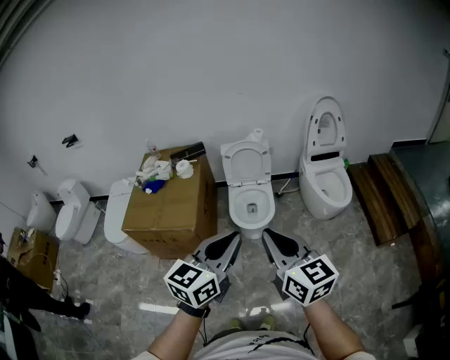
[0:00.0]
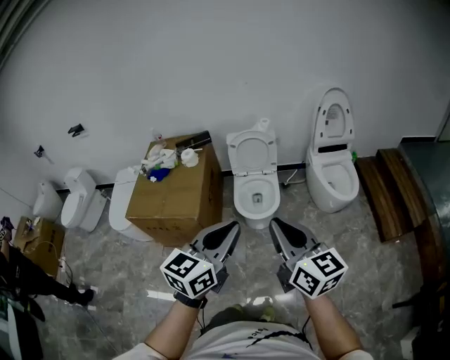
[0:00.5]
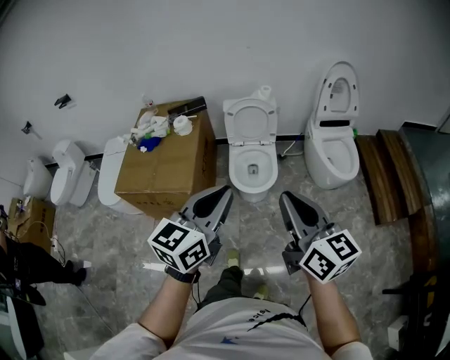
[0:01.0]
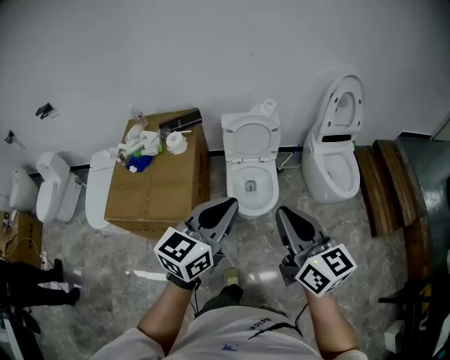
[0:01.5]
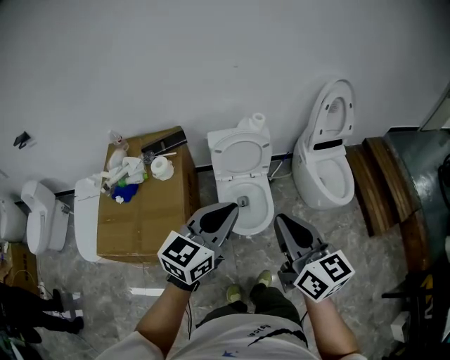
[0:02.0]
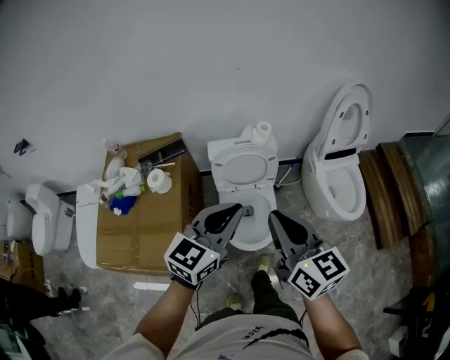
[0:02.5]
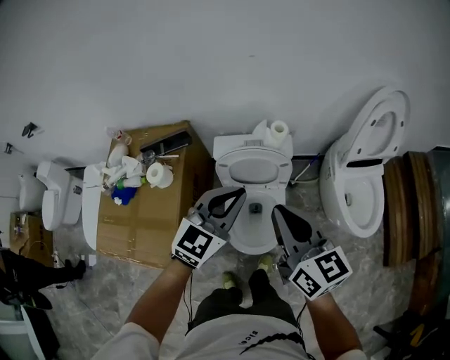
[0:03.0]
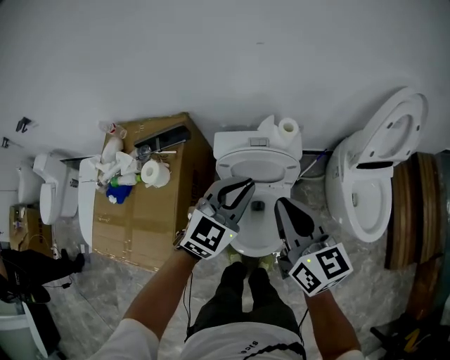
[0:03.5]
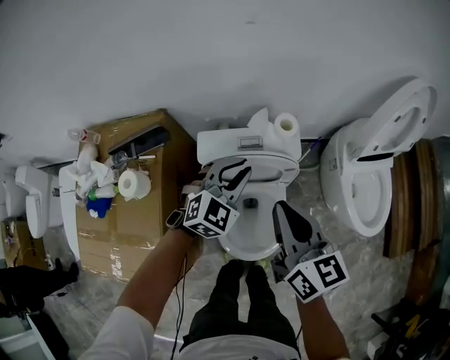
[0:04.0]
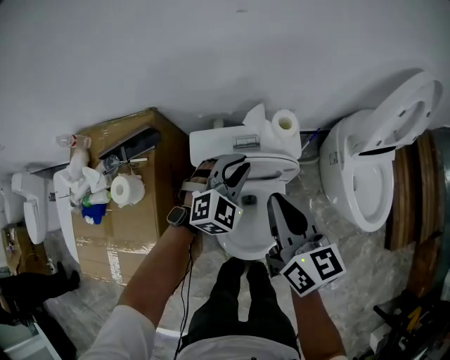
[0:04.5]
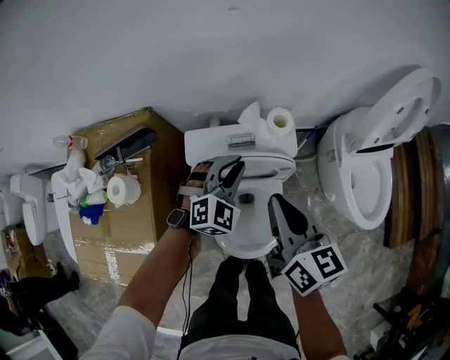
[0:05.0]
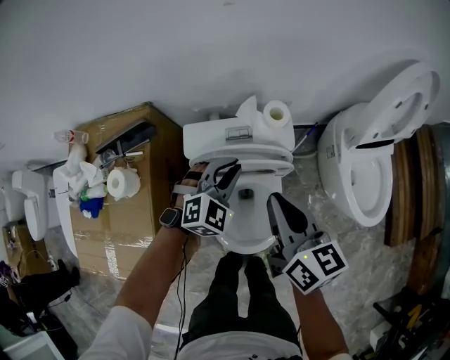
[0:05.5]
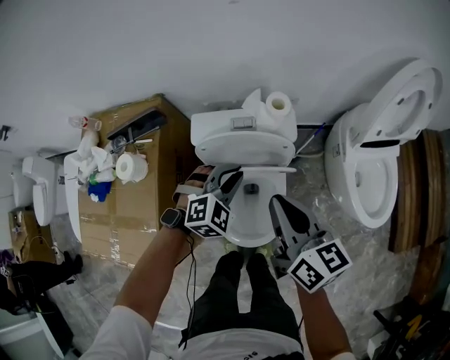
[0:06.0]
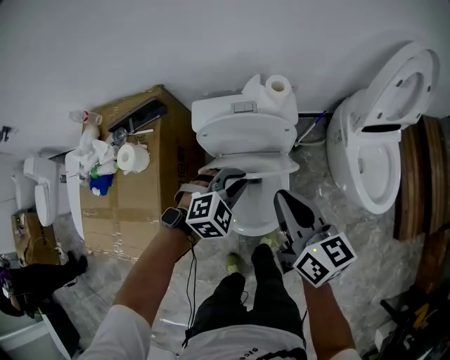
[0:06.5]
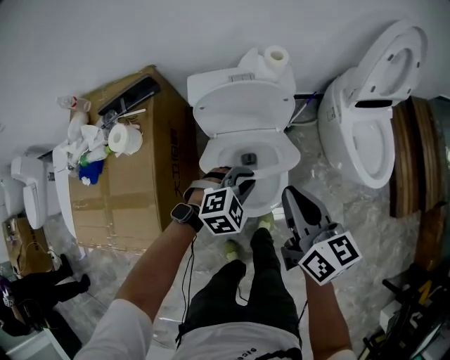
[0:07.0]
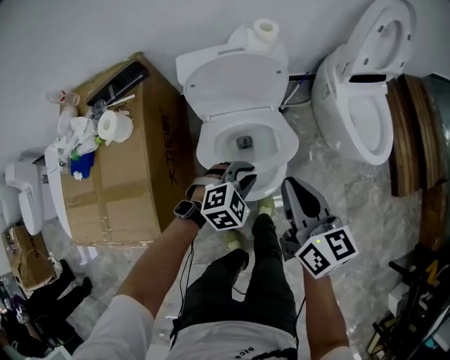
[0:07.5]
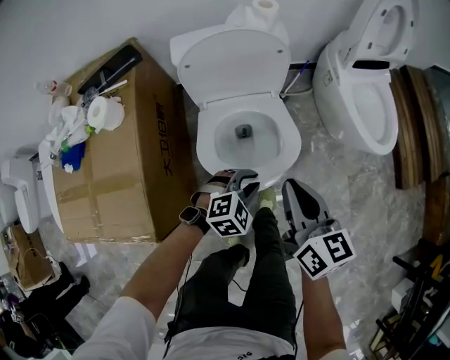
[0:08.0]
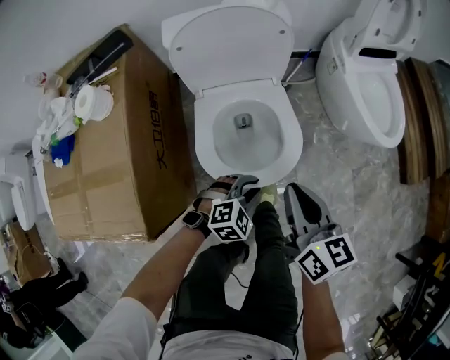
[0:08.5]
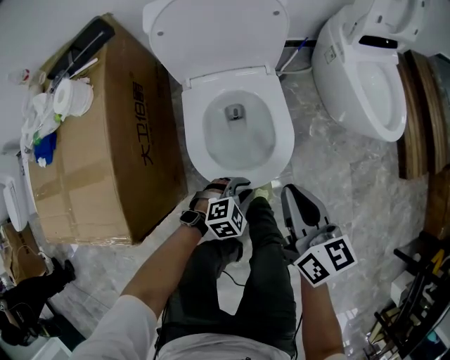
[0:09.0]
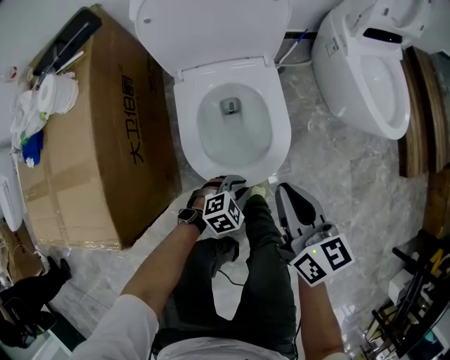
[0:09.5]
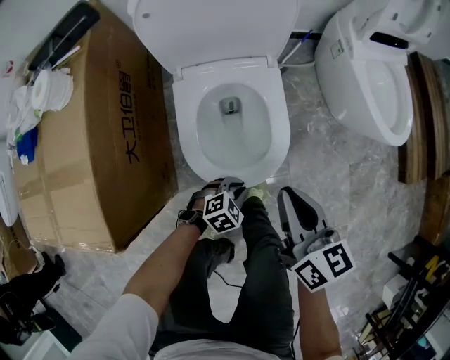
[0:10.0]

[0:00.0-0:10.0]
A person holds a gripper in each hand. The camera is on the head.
0:00.0 to 0:02.0: Both grippers travel together forward, roughly 30 cm.
0:02.0 to 0:04.0: Both grippers are carried forward, approximately 40 cm. The two grippers go roughly 25 cm downward. The left gripper changes its angle by roughly 40 degrees.
0:04.0 to 0:06.0: The left gripper travels downward and backward by about 10 cm; the right gripper ends up approximately 5 cm from where it was.
0:06.0 to 0:08.0: Both grippers move backward and downward, approximately 30 cm. The left gripper changes its angle by about 20 degrees.
0:08.0 to 0:10.0: The left gripper shifts roughly 25 cm downward; the right gripper goes approximately 15 cm downward.

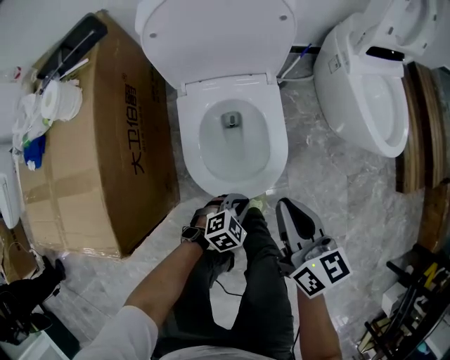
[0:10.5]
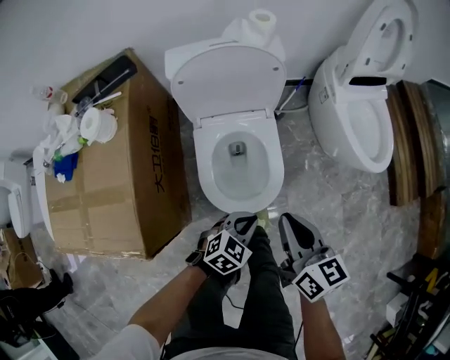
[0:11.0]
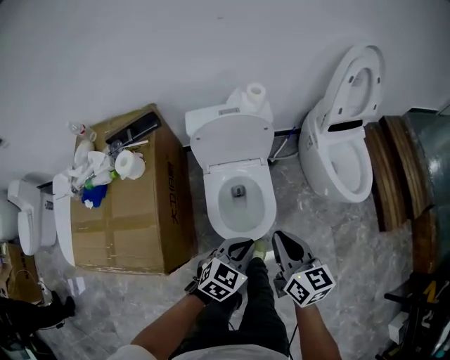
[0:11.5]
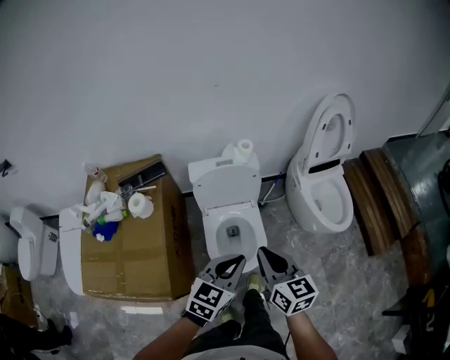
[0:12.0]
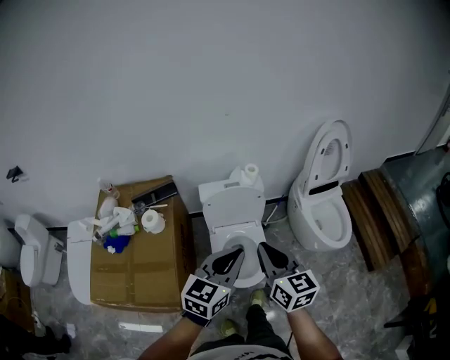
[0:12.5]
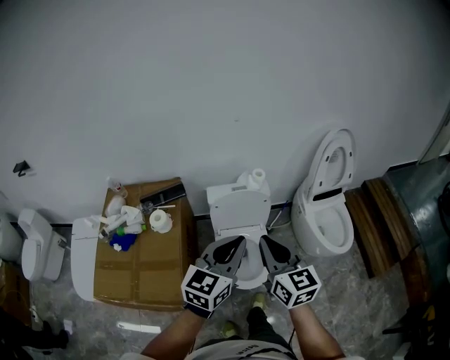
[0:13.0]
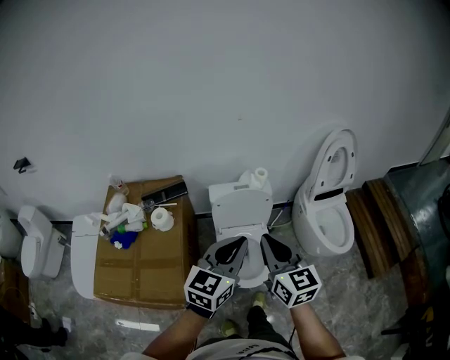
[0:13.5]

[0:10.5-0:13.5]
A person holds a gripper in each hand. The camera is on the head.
0:10.5 to 0:12.0: The left gripper shifts approximately 60 cm upward, and angles its fingers upward, by some 30 degrees; the right gripper moves upward, about 35 cm.
0:12.0 to 0:13.5: The grippers both shift upward and to the left by some 15 cm.

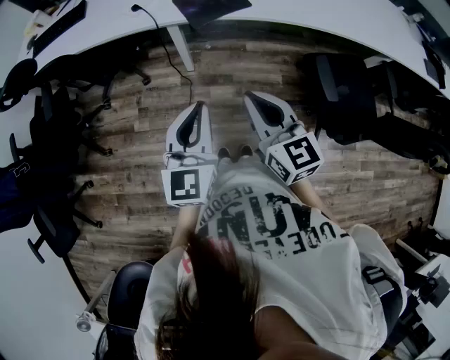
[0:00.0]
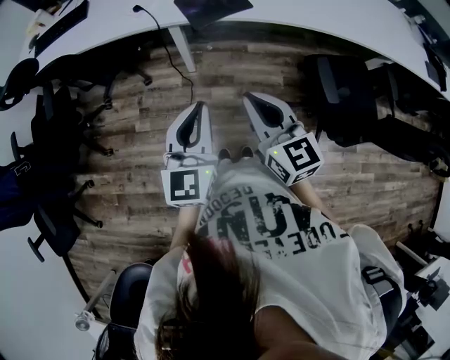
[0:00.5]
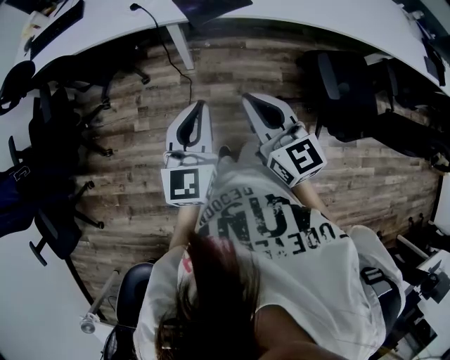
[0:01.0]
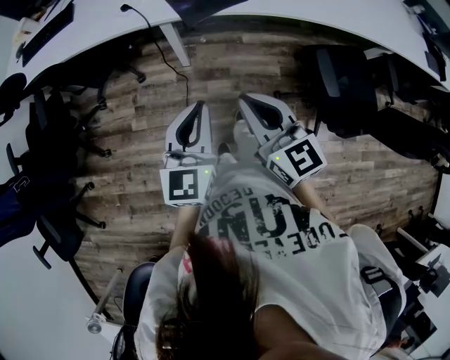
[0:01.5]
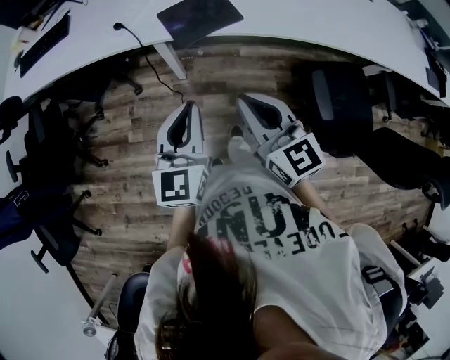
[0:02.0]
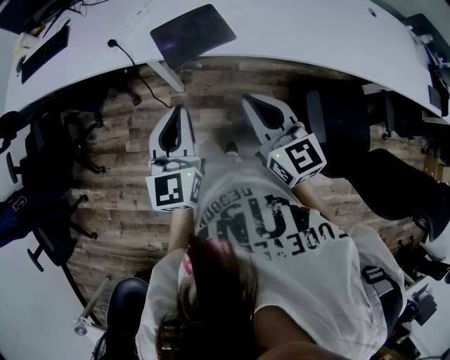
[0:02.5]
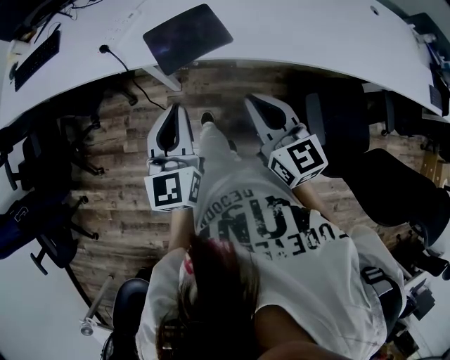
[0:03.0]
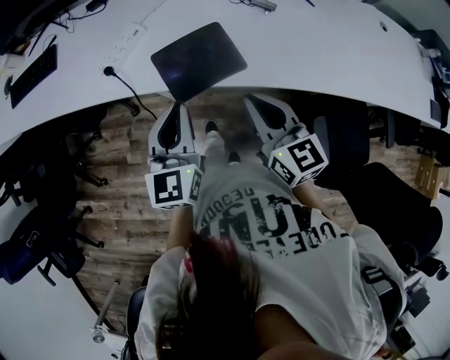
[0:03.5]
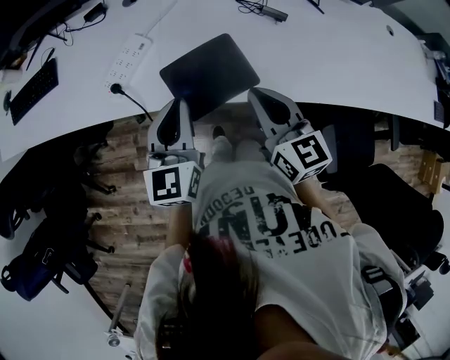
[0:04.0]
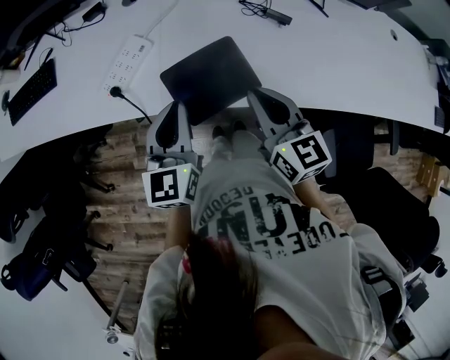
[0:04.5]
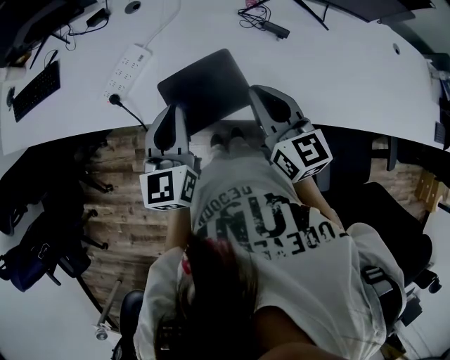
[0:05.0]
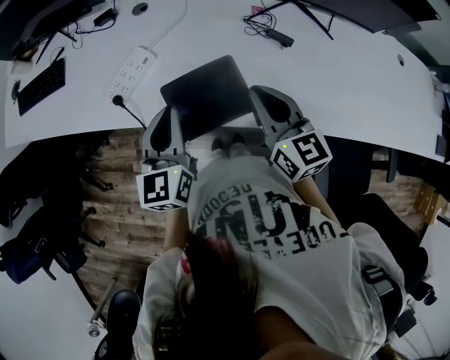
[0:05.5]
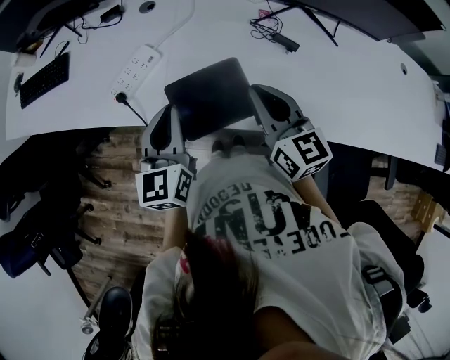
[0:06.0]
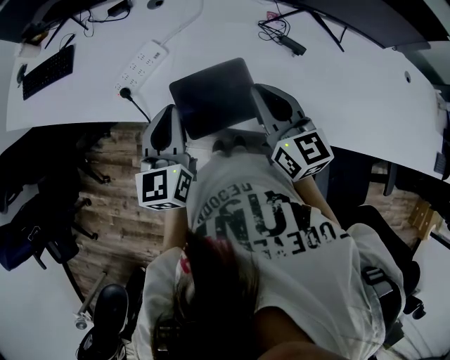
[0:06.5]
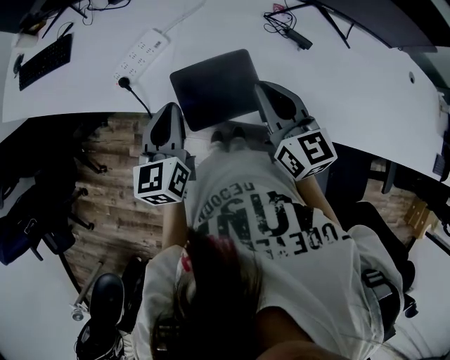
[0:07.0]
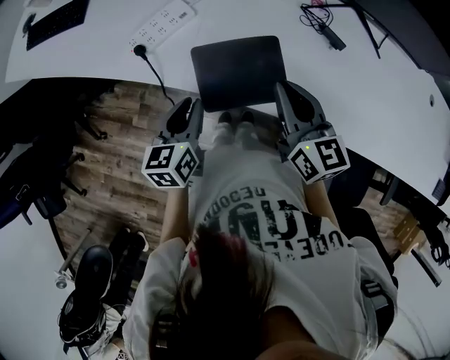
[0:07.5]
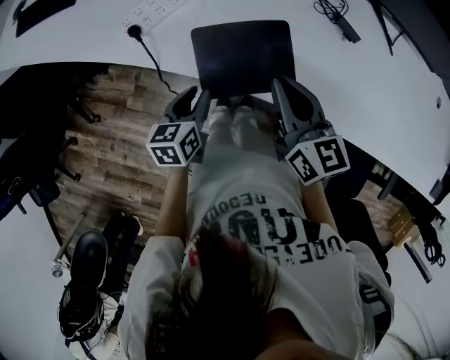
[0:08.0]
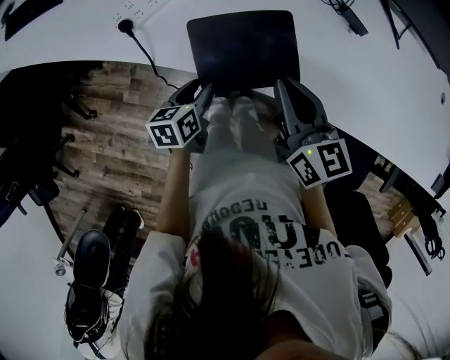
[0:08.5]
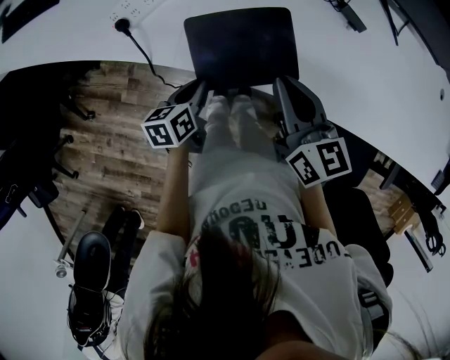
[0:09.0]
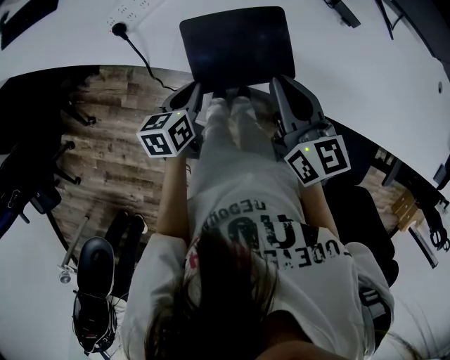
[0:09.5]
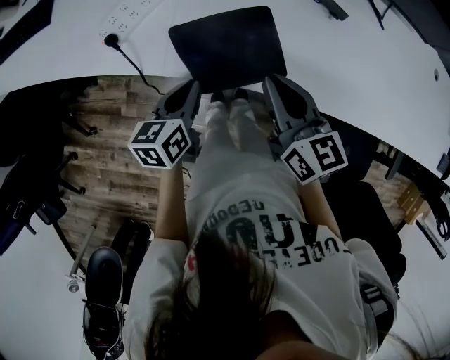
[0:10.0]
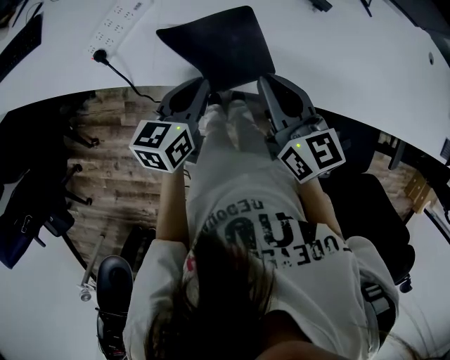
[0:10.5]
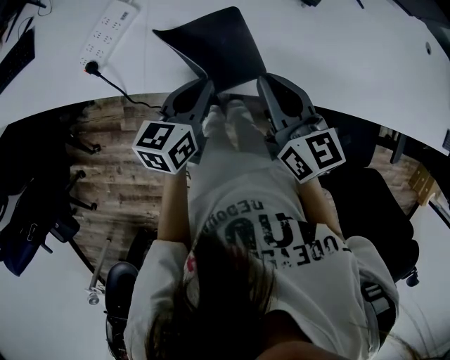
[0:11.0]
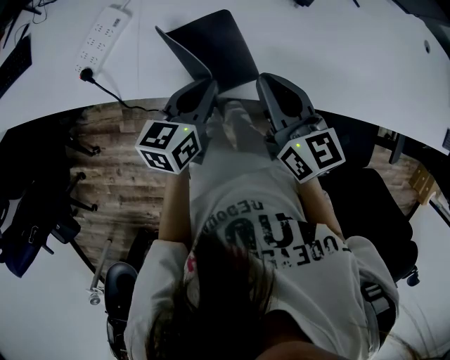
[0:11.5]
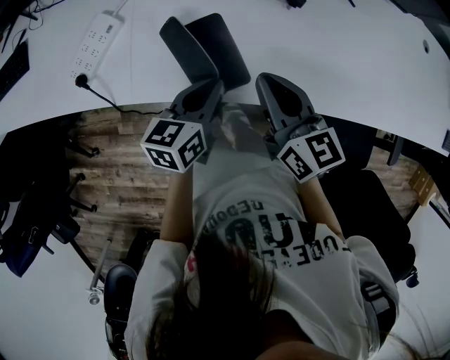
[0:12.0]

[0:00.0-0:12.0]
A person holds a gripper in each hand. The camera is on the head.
0:00.0 to 0:02.0: Both grippers move forward, approximately 10 cm.
0:02.0 to 0:04.0: Both grippers travel together forward, roughly 25 cm.
0:04.0 to 0:06.0: The right gripper heads forward, covering roughly 10 cm.
0:06.0 to 0:08.0: The right gripper goes some 5 cm downward. Meanwhile the left gripper is displaced downward by approximately 20 cm, rotates some 30 degrees, and opens up.
0:08.0 to 0:10.0: The left gripper goes downward and returns, about 5 cm each way, and closes up.
0:10.0 to 0:12.0: The right gripper heads to the right, covering about 10 cm, while the left gripper moves to the right, roughly 15 cm.

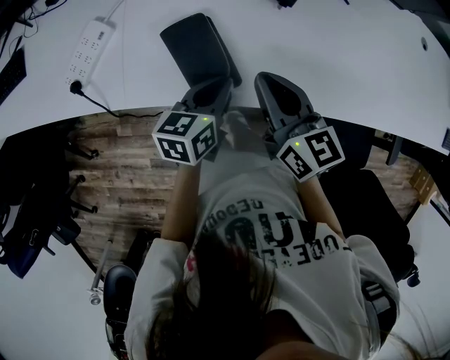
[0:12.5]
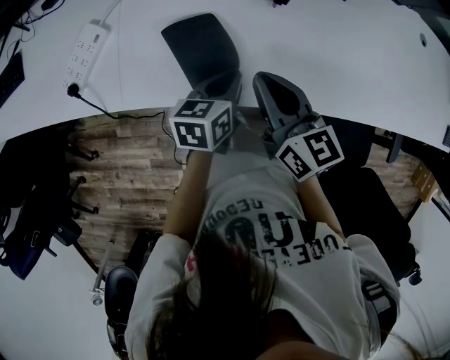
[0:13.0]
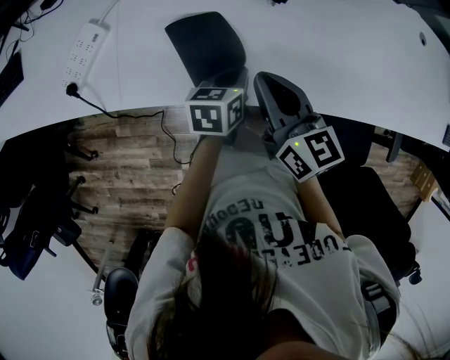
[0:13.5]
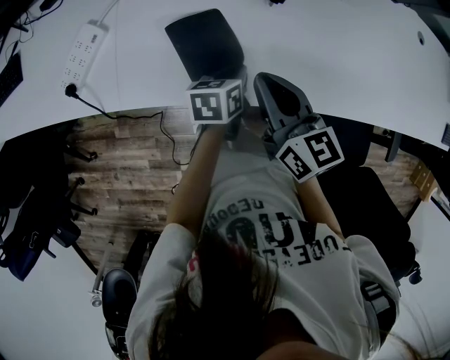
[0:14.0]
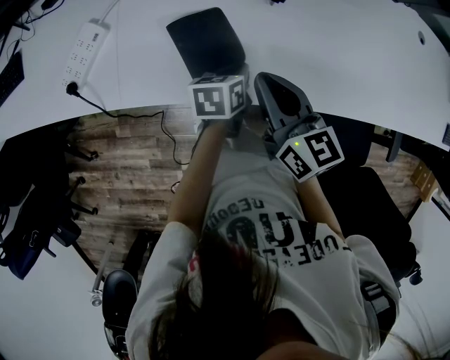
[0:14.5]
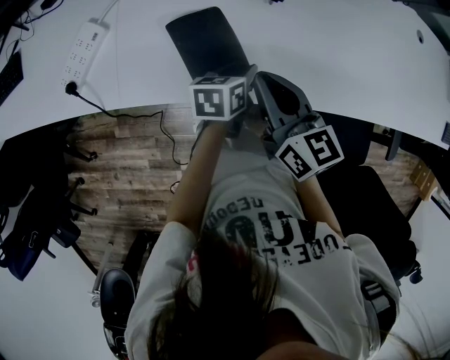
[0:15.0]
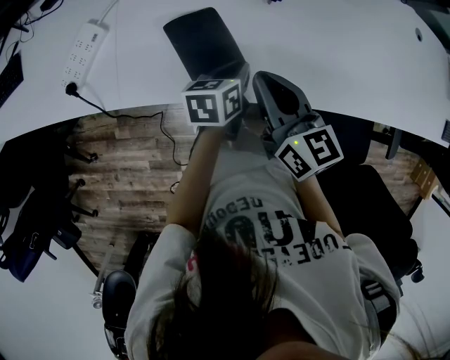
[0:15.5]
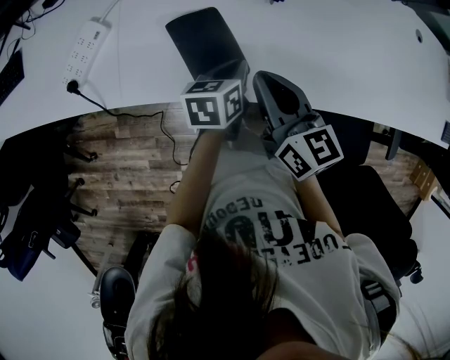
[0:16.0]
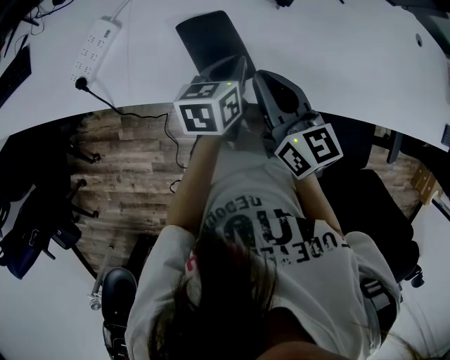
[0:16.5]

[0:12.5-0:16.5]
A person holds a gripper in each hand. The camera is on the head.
0:12.5 to 0:14.5: The left gripper moves downward and to the right, about 10 cm.
0:14.5 to 0:16.5: The left gripper moves upward, some 10 cm, and opens and closes again.
